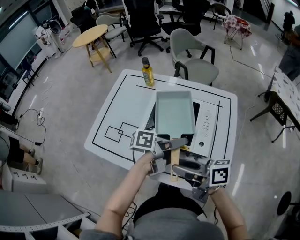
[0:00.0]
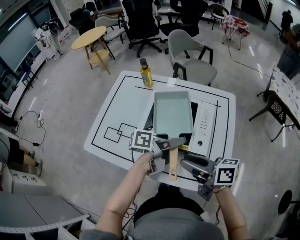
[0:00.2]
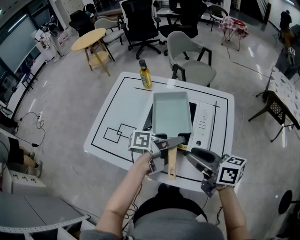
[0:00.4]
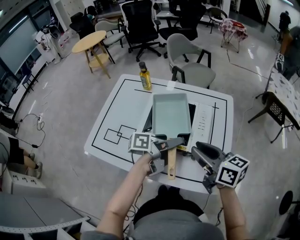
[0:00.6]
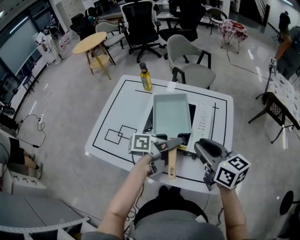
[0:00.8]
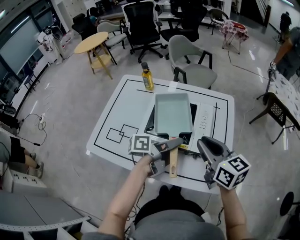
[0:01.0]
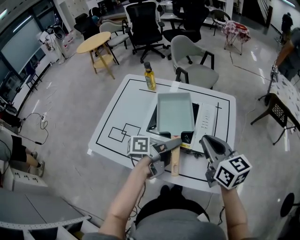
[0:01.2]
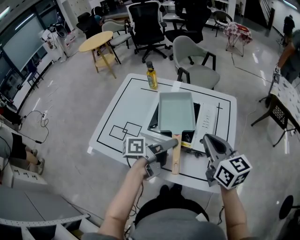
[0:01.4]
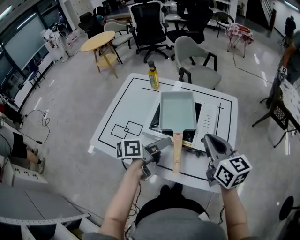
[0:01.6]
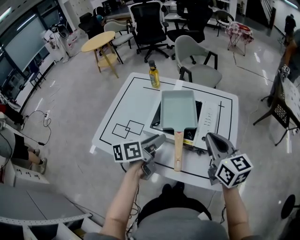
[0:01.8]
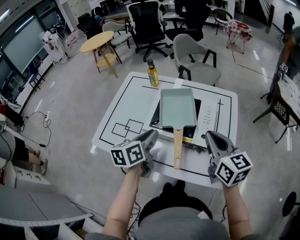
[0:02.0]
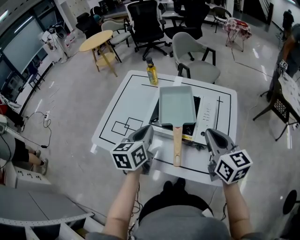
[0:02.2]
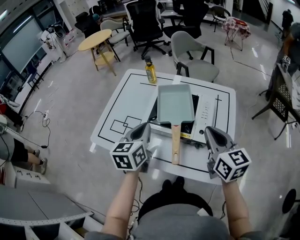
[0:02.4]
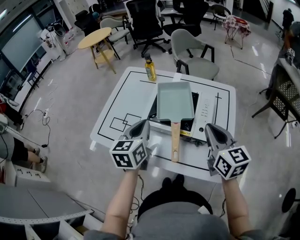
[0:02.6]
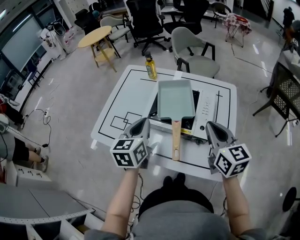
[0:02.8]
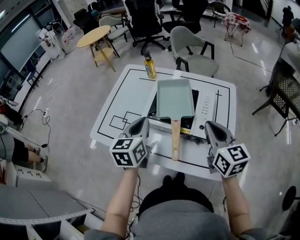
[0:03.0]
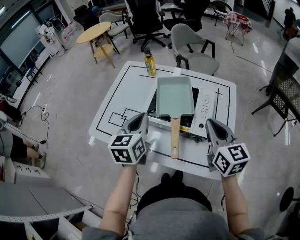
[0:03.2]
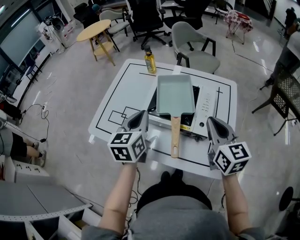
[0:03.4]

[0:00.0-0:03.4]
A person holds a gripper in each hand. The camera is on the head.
0:00.0 to 0:01.6: The right gripper changes place by roughly 15 cm, swivels about 60 degrees, and closes. Meanwhile the left gripper shifts by approximately 10 cm, and swivels some 20 degrees.
0:01.6 to 0:03.4: The left gripper travels to the left and upward by approximately 10 cm, swivels about 60 degrees, and closes up.

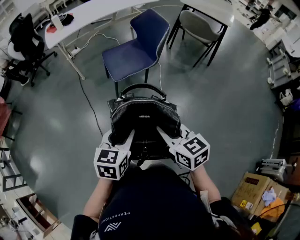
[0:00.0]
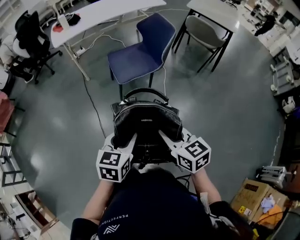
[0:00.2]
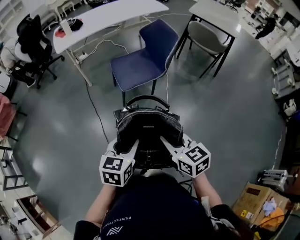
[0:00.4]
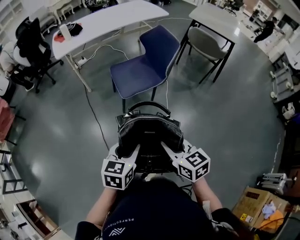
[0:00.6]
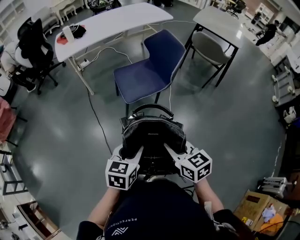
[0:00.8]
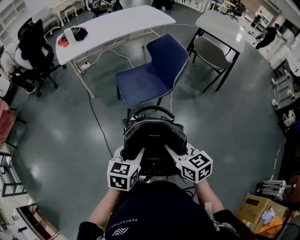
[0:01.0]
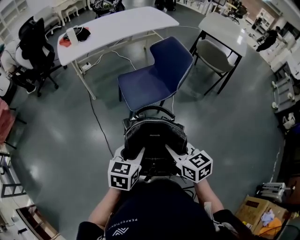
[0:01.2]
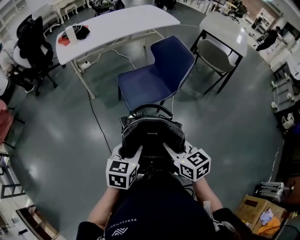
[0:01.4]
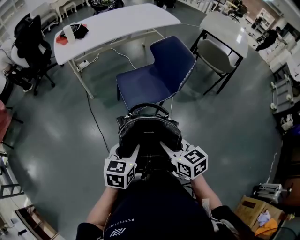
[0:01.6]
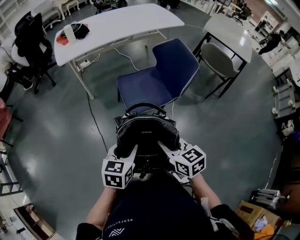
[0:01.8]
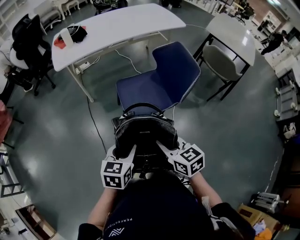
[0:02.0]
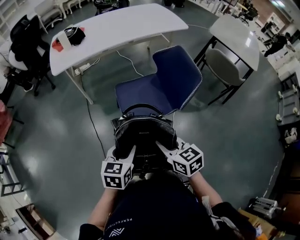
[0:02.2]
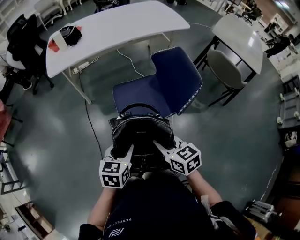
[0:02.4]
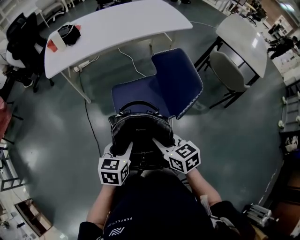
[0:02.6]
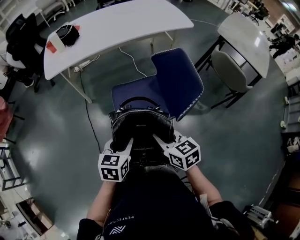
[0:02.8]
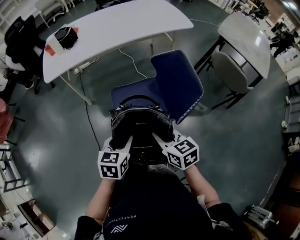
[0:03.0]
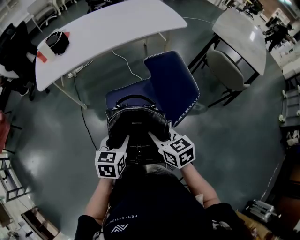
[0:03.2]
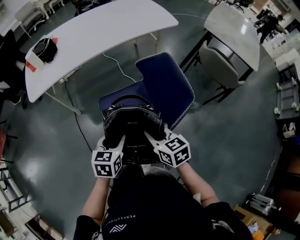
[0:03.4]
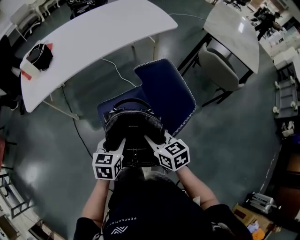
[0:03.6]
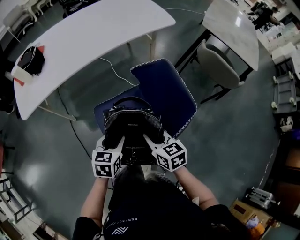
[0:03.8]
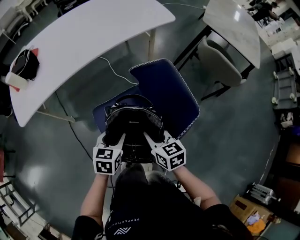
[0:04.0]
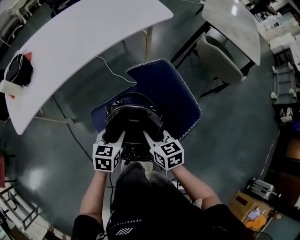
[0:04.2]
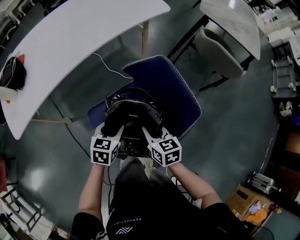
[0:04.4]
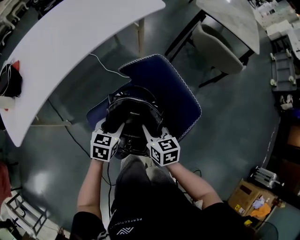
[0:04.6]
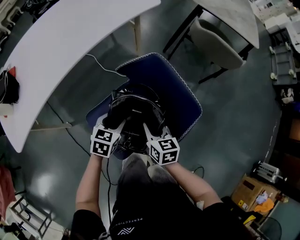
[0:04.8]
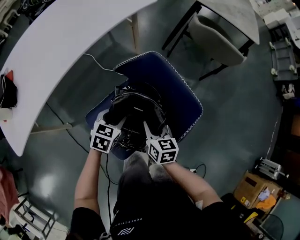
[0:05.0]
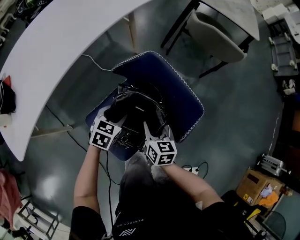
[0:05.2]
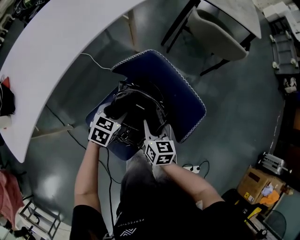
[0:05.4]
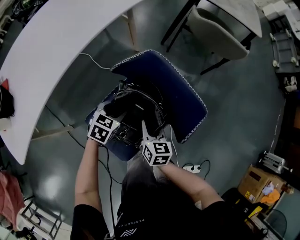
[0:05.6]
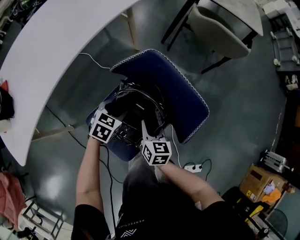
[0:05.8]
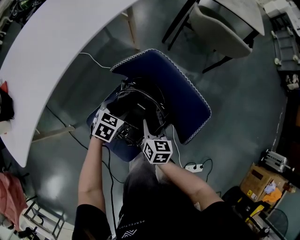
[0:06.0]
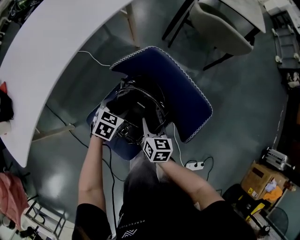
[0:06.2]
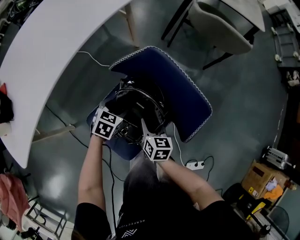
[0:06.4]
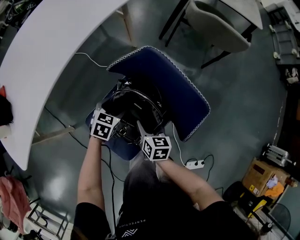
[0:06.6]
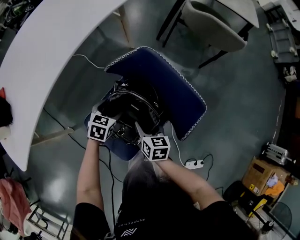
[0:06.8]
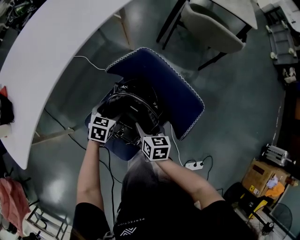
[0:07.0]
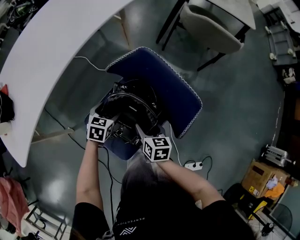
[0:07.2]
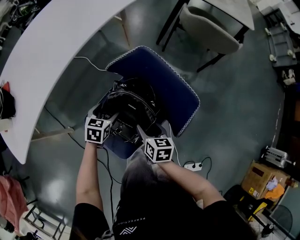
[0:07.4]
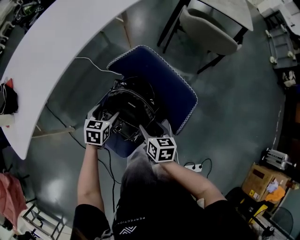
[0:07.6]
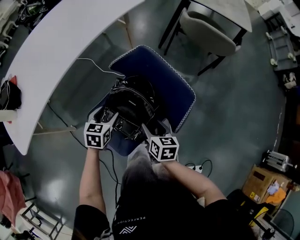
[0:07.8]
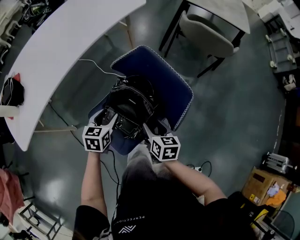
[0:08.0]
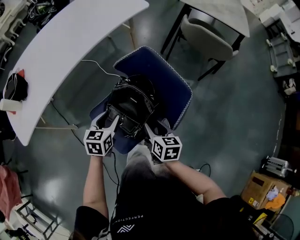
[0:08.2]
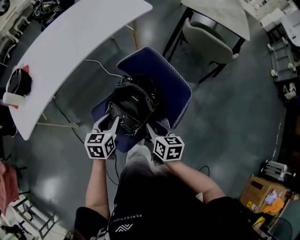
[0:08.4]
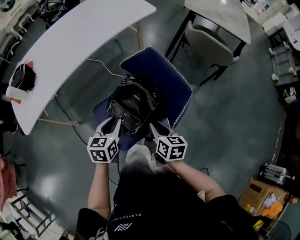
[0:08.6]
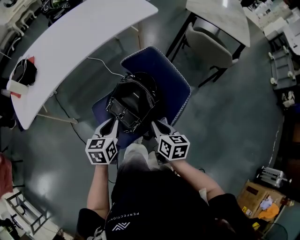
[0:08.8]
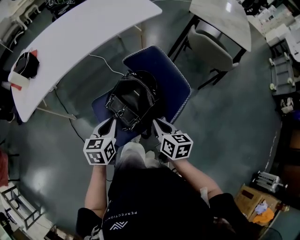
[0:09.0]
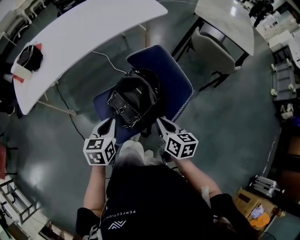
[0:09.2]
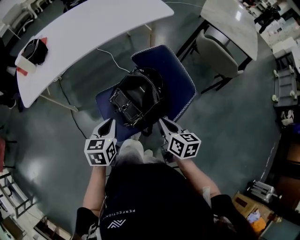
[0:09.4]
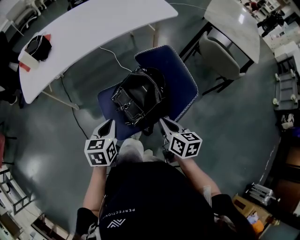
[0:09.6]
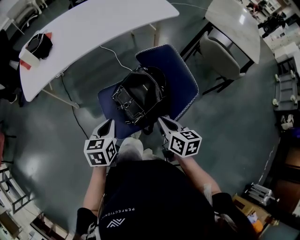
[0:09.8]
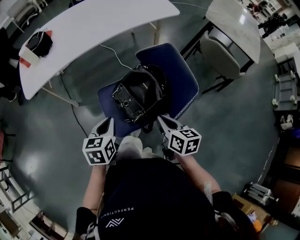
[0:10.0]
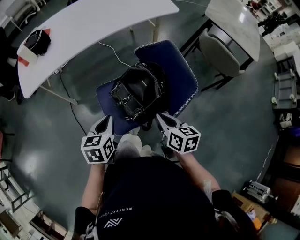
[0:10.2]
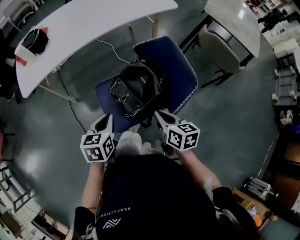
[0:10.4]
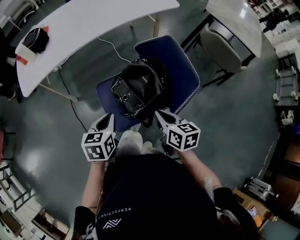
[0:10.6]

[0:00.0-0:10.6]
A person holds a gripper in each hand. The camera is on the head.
0:00.0 to 0:01.6: The grippers both shift forward and to the left by some 20 cm.
0:01.6 to 0:03.0: Both grippers move forward and to the right, some 30 cm.
0:03.0 to 0:04.6: The right gripper ends up some 25 cm from where it was, and changes its angle by approximately 30 degrees. The left gripper ends up roughly 30 cm from where it was, and rotates about 30 degrees.
0:04.6 to 0:06.0: The left gripper travels forward and downward by approximately 10 cm, and turns by some 20 degrees; the right gripper heads downward, covering about 10 cm, and rotates approximately 20 degrees.
0:06.0 to 0:07.6: The right gripper ends up some 5 cm from where it was, and opens its fingers, while the left gripper shifts by some 5 cm.
0:07.6 to 0:09.0: The left gripper travels backward and upward by some 20 cm, swivels about 30 degrees, and closes its fingers. Meanwhile the right gripper shifts roughly 15 cm upward and backward, and closes.
0:09.0 to 0:10.6: The left gripper changes place by approximately 5 cm.

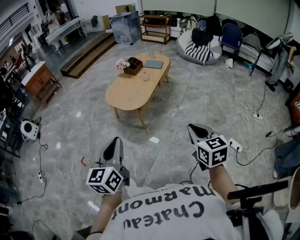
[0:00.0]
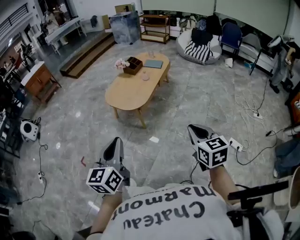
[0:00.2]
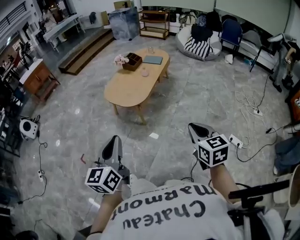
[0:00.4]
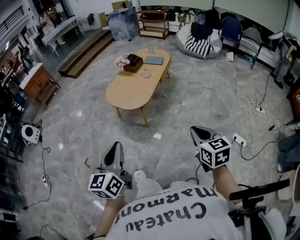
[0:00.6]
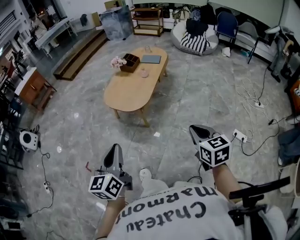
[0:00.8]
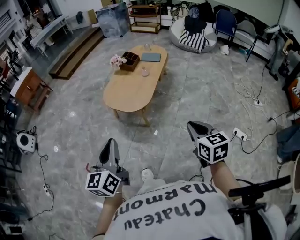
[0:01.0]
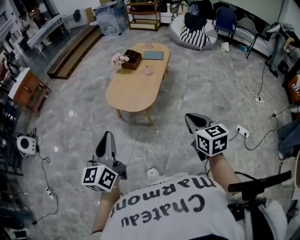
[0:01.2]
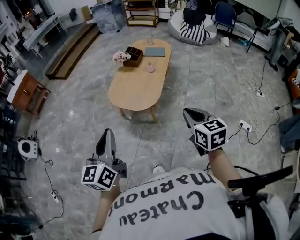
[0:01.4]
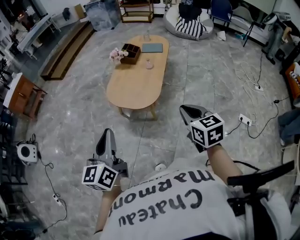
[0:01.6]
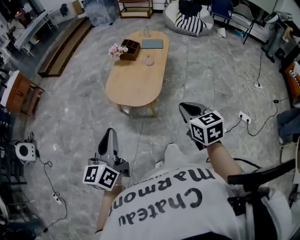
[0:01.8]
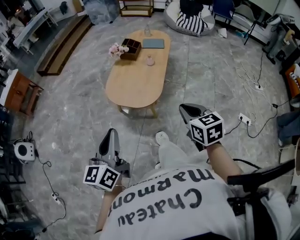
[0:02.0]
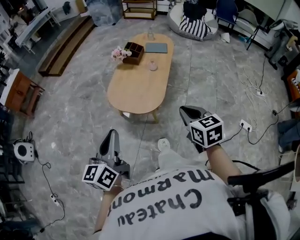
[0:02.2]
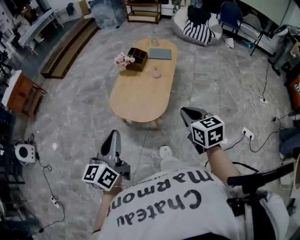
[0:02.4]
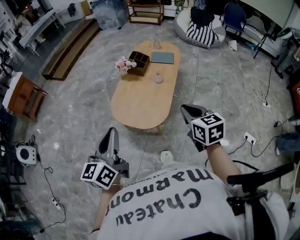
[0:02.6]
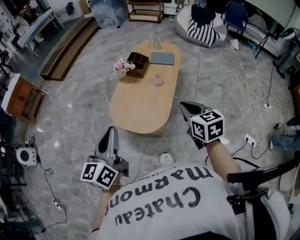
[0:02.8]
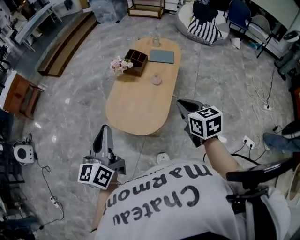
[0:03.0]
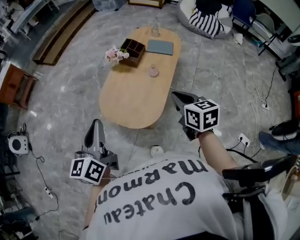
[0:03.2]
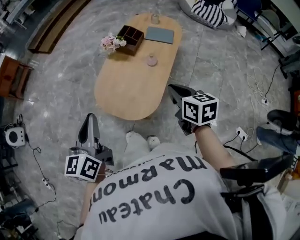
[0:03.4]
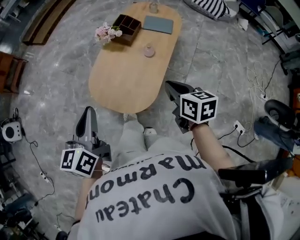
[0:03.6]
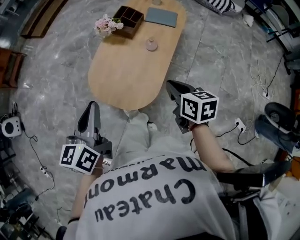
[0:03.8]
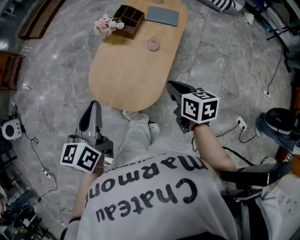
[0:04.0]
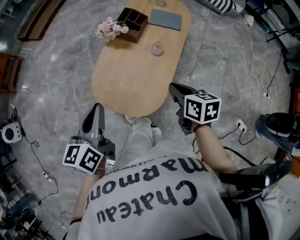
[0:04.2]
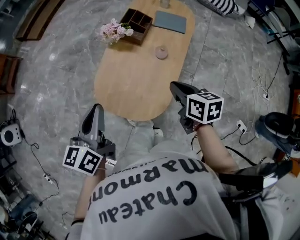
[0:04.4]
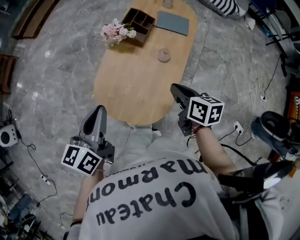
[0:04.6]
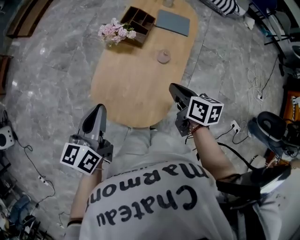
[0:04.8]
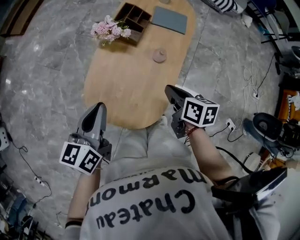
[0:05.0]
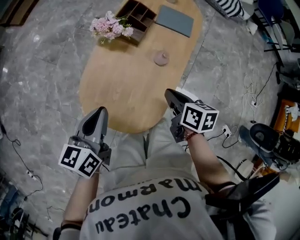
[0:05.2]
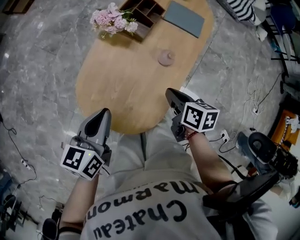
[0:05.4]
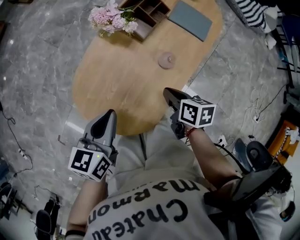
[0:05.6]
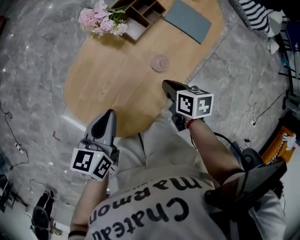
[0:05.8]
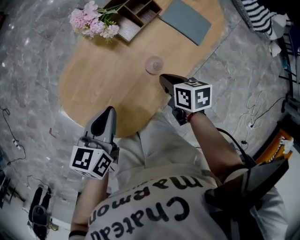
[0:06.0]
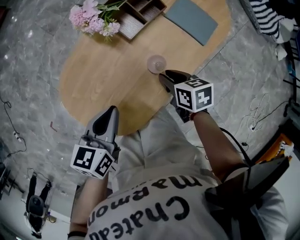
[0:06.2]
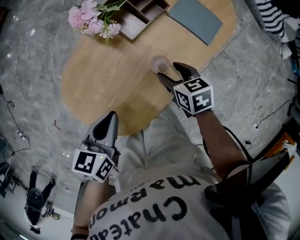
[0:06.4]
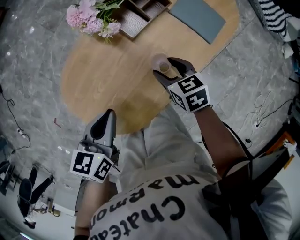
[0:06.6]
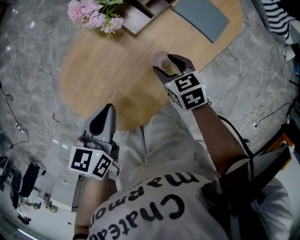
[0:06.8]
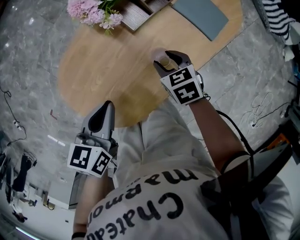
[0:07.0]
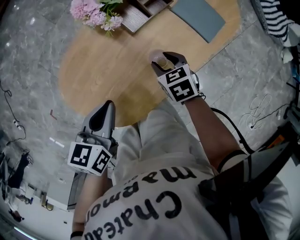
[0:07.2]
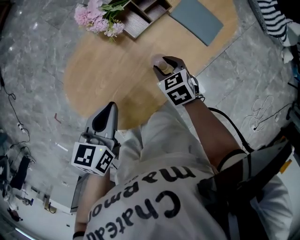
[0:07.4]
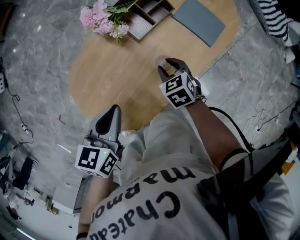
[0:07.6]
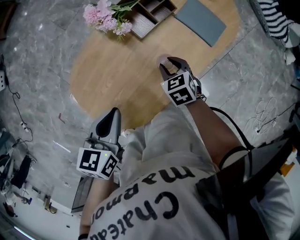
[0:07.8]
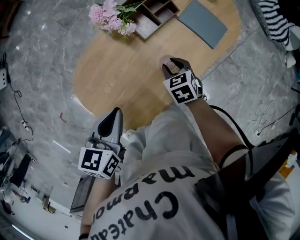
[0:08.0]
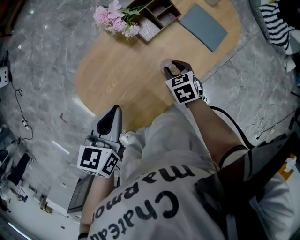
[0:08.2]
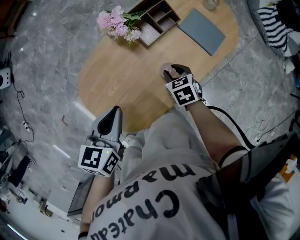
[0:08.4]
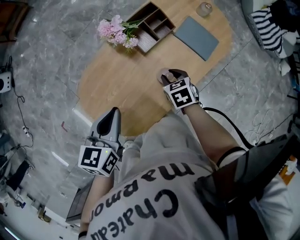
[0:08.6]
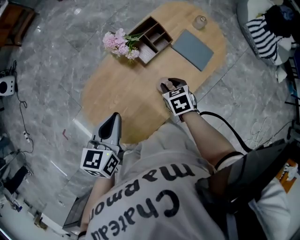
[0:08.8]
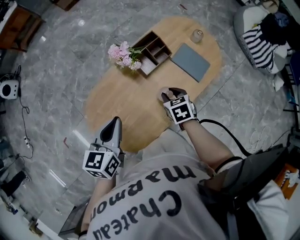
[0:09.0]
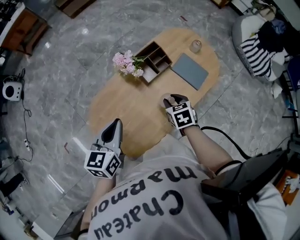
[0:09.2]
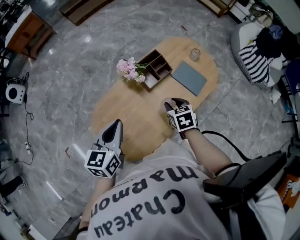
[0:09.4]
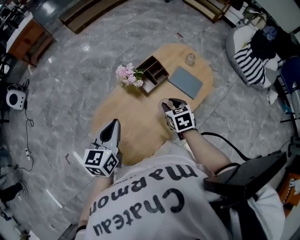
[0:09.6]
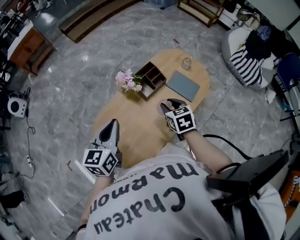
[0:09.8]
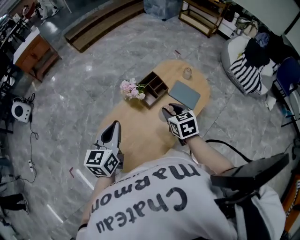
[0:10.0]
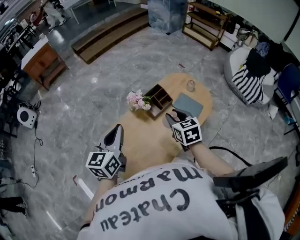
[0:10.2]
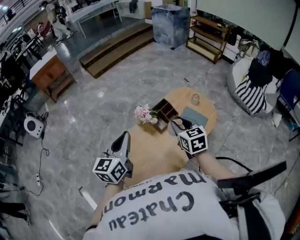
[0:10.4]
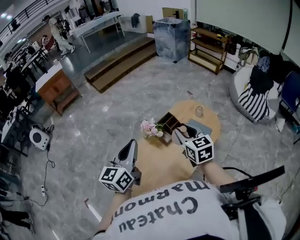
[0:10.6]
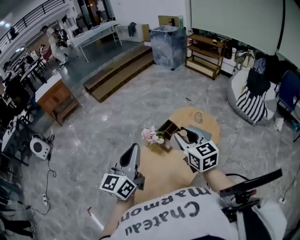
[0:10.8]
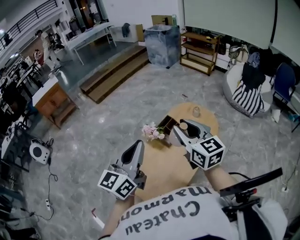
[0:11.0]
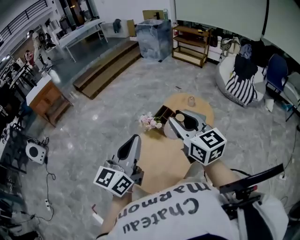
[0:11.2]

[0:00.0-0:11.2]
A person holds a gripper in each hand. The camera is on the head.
0:00.0 to 0:01.6: The right gripper is displaced to the left and forward by about 30 cm; the left gripper shifts roughly 30 cm forward and to the left.
0:01.6 to 0:03.2: Both grippers travel together forward, about 30 cm.
0:03.2 to 0:04.8: The grippers both shift forward and downward by roughly 25 cm. The right gripper turns by about 30 degrees. The left gripper rotates about 20 degrees.
0:04.8 to 0:06.4: The right gripper shifts approximately 20 cm downward, turns by about 50 degrees, and opens. Meanwhile the left gripper shifts by about 25 cm, and rotates roughly 30 degrees.
0:06.4 to 0:08.0: The right gripper changes its angle by roughly 20 degrees, and closes up; the left gripper moves upward, about 5 cm.
0:08.0 to 0:09.6: Both grippers travel together upward, some 15 cm. The left gripper changes its angle by roughly 20 degrees.
0:09.6 to 0:11.2: The left gripper travels upward by some 25 cm, and tilts its fingers some 30 degrees upward. Meanwhile the right gripper travels upward by roughly 35 cm, and tilts its fingers some 50 degrees upward.
